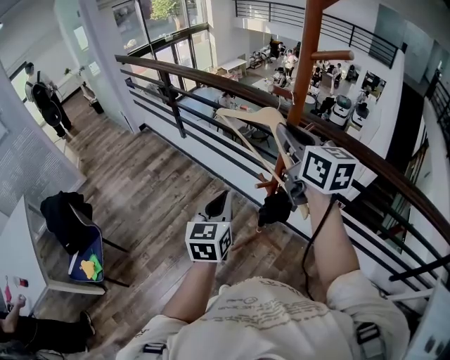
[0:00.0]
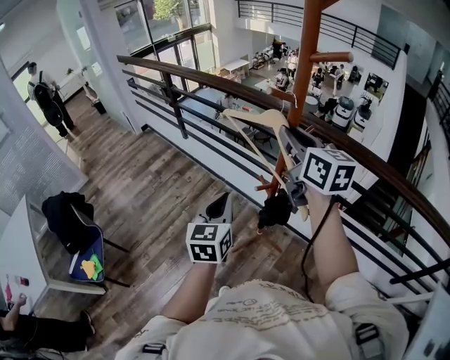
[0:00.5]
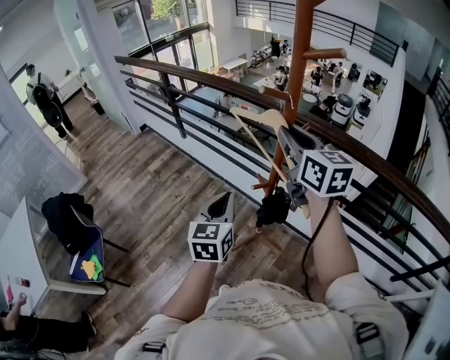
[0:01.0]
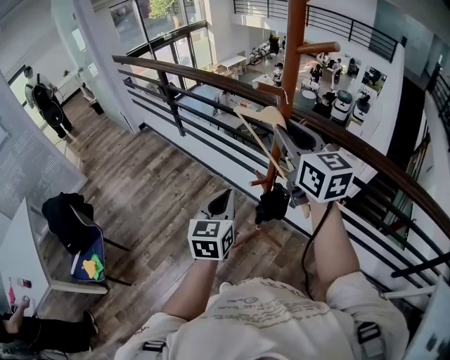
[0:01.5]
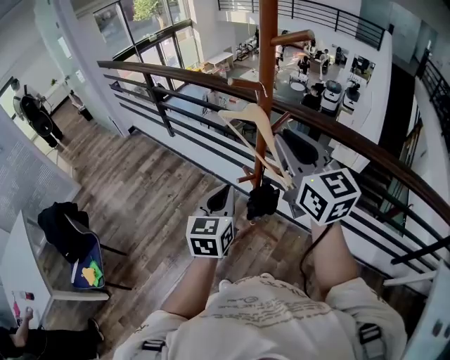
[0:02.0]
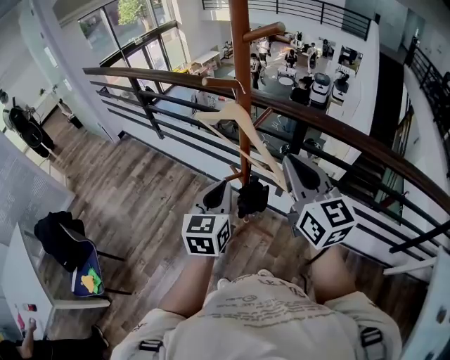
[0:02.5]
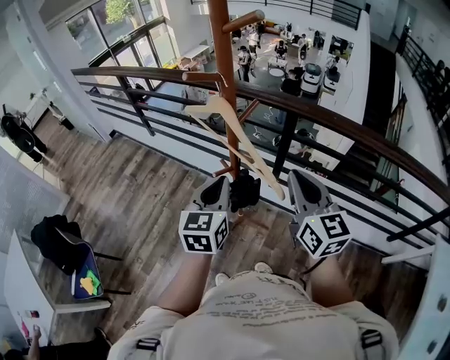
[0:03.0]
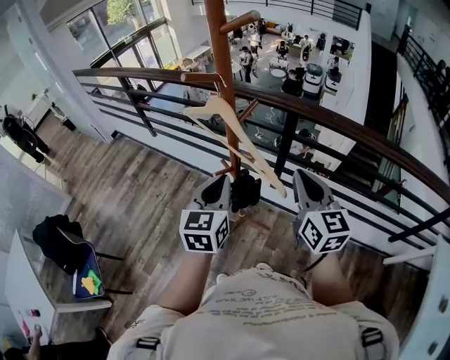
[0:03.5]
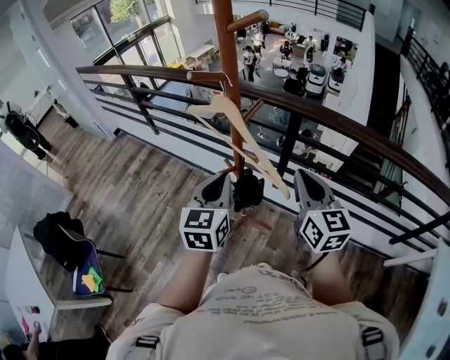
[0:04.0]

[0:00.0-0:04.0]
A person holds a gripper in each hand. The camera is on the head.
0:00.0 to 0:02.0: The left gripper shifts about 10 cm to the right. The right gripper goes some 10 cm backward and to the right.
0:02.0 to 0:04.0: The left gripper travels to the right by some 5 cm. Meanwhile the right gripper is displaced to the right, downward and backward by roughly 20 cm.

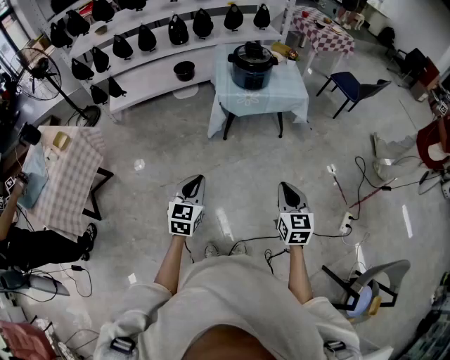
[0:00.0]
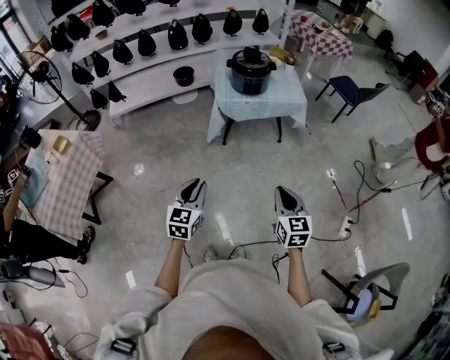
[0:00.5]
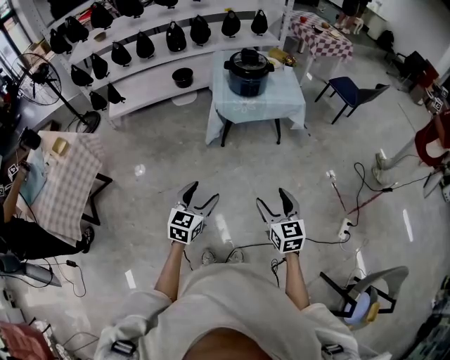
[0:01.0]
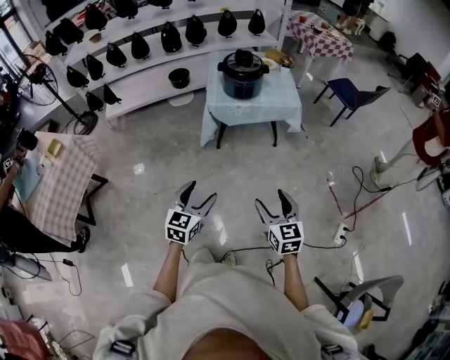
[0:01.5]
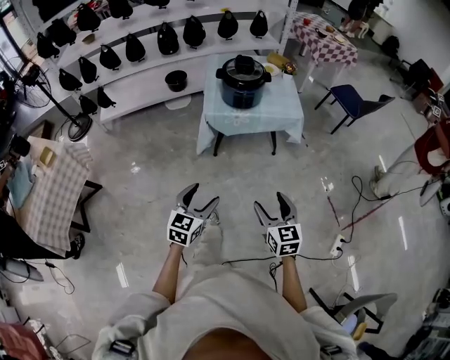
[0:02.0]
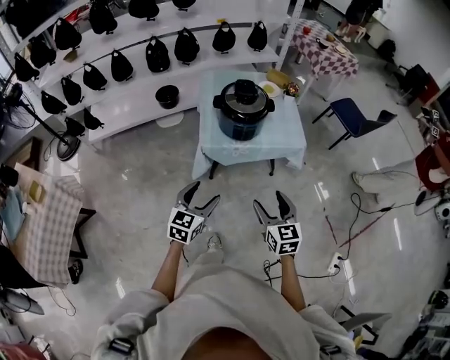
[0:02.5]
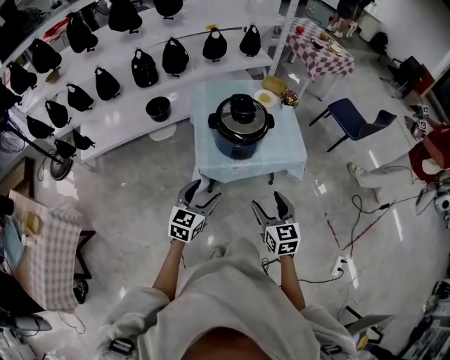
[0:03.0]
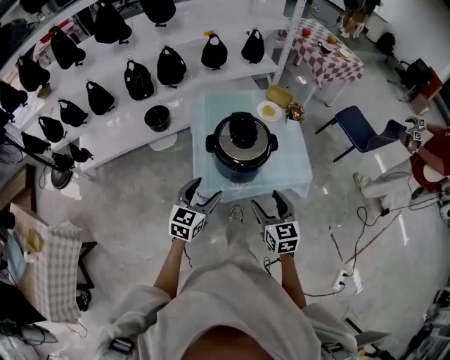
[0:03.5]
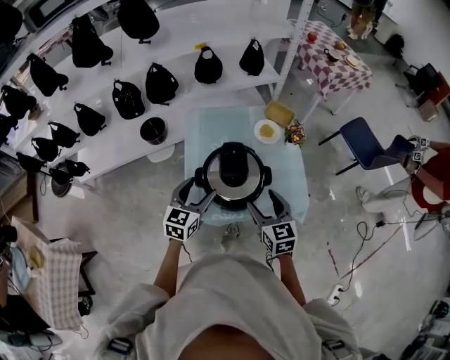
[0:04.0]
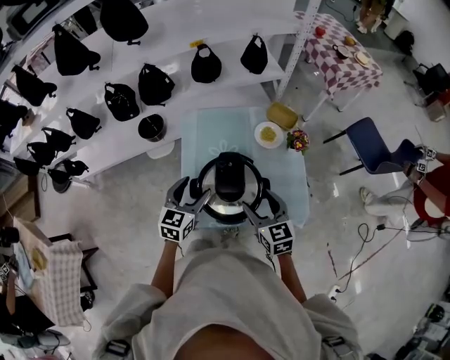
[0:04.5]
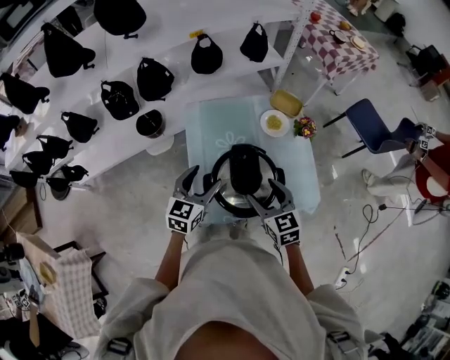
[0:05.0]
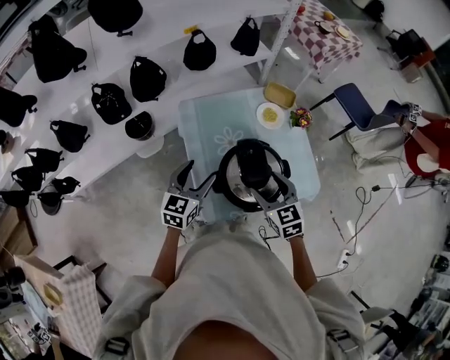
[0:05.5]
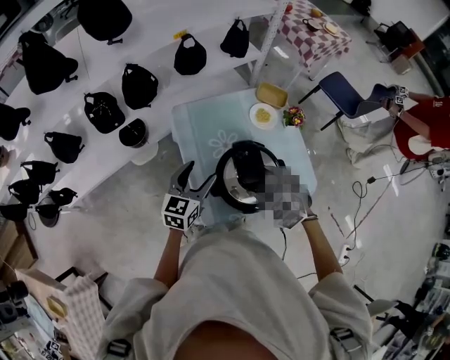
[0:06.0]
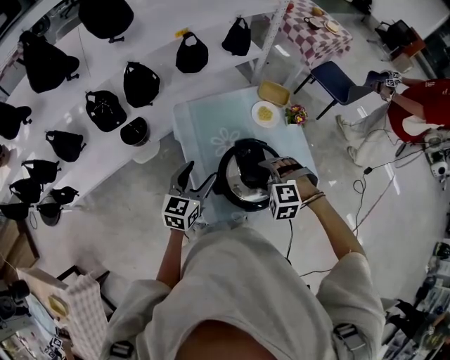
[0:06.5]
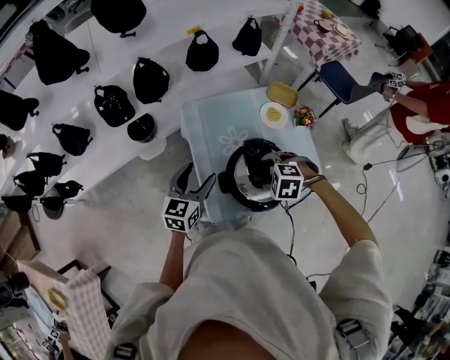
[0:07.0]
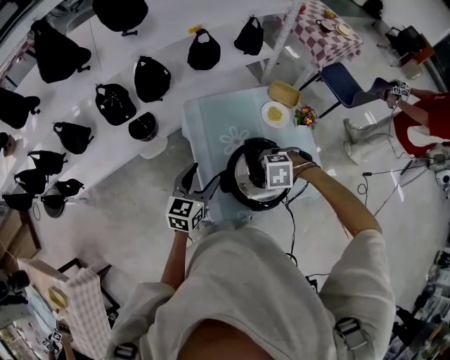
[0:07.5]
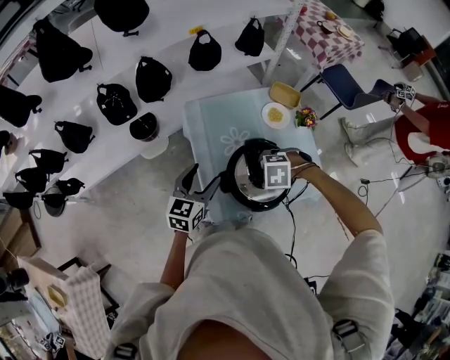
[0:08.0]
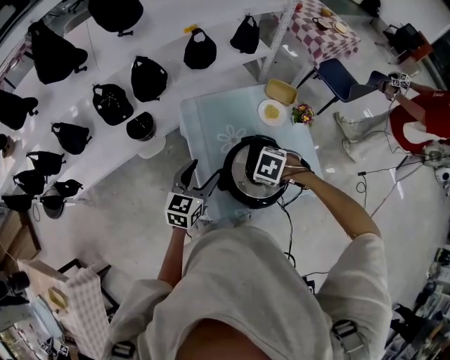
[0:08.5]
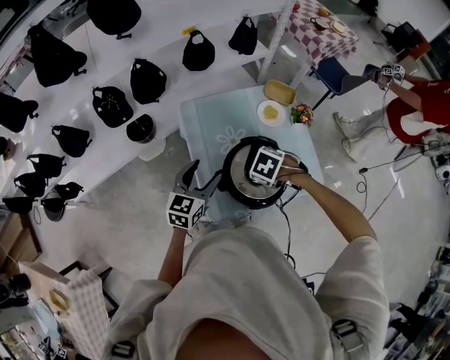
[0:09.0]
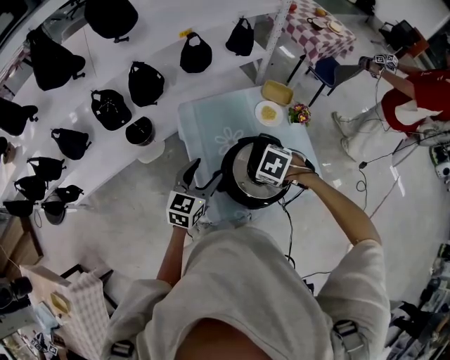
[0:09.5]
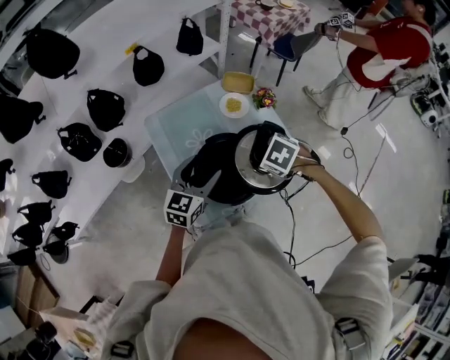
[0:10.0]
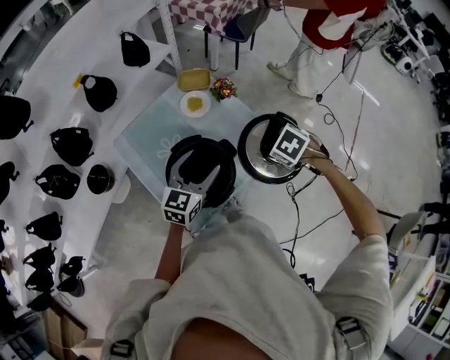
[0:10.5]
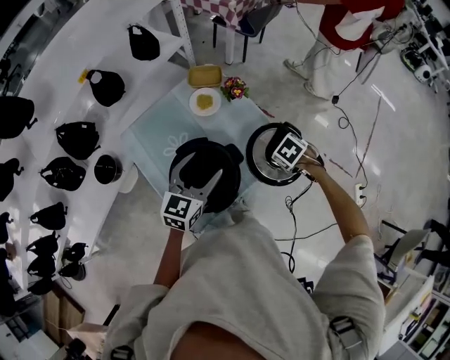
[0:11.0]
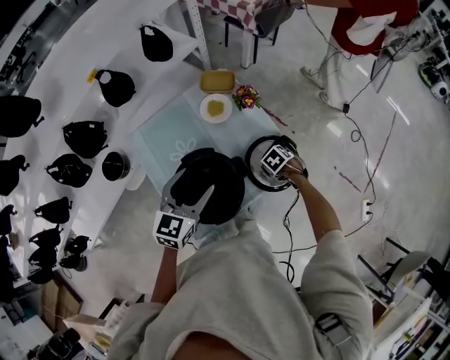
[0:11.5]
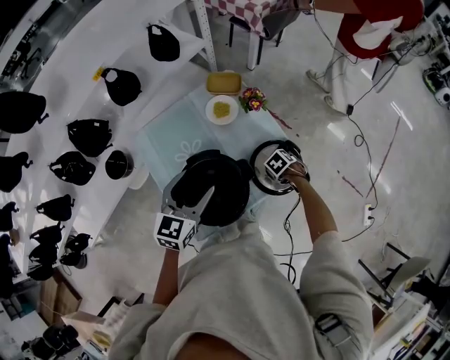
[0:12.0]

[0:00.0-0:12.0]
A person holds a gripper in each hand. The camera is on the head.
0:00.0 to 0:02.0: The left gripper is displaced forward and to the right by approximately 15 cm, and opens its fingers; the right gripper goes roughly 15 cm forward, and opens its fingers.
0:02.0 to 0:04.0: The pair of grippers is taken forward, approximately 70 cm.
0:04.0 to 0:06.0: The right gripper moves to the left and forward, about 10 cm, and swivels approximately 50 degrees. The left gripper moves forward and to the left, some 15 cm.
0:06.0 to 0:08.0: The right gripper changes place by approximately 5 cm, and tilts its fingers roughly 30 degrees downward.
0:08.0 to 0:10.0: The right gripper shifts by some 15 cm, and rolls clockwise, seen from behind, by about 50 degrees; the left gripper moves some 10 cm.
0:10.0 to 0:12.0: The right gripper travels downward by approximately 25 cm, and swivels about 20 degrees. Meanwhile the left gripper ends up approximately 10 cm from where it was.

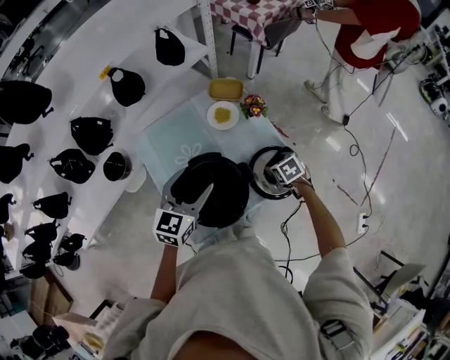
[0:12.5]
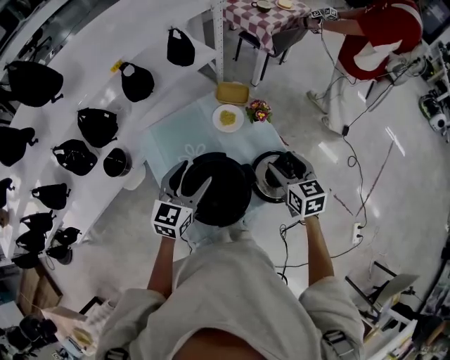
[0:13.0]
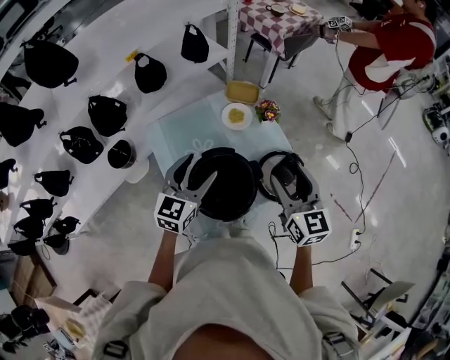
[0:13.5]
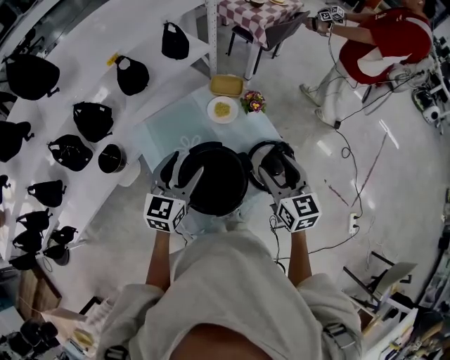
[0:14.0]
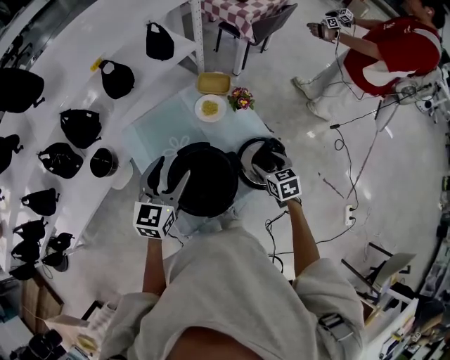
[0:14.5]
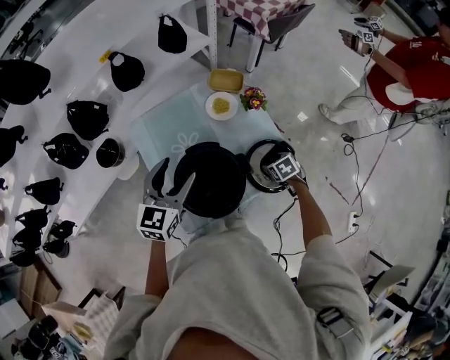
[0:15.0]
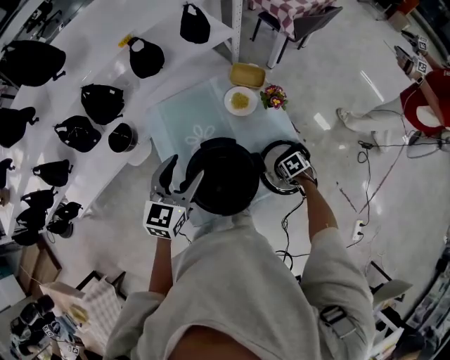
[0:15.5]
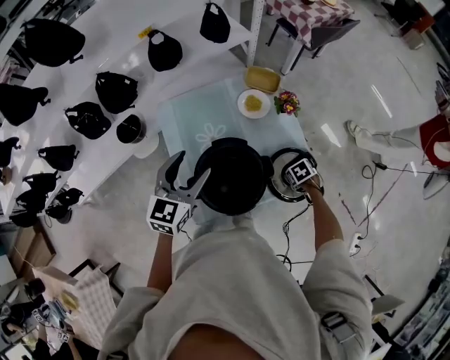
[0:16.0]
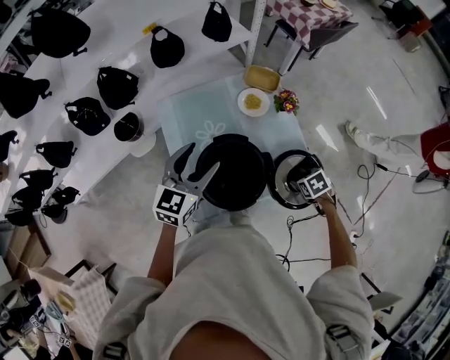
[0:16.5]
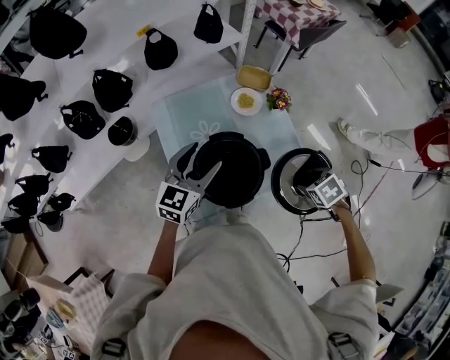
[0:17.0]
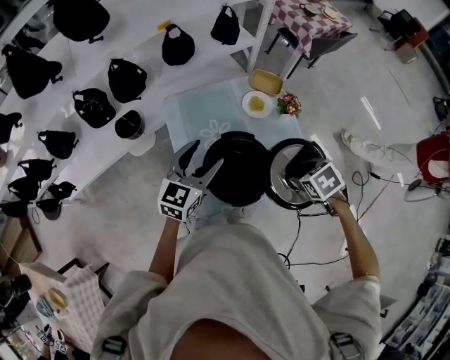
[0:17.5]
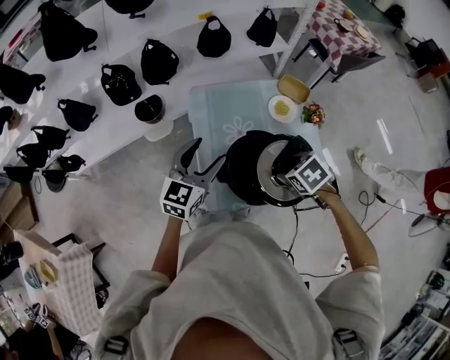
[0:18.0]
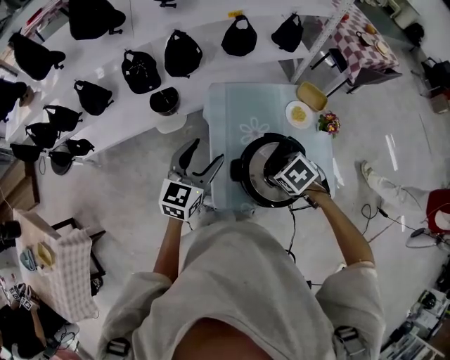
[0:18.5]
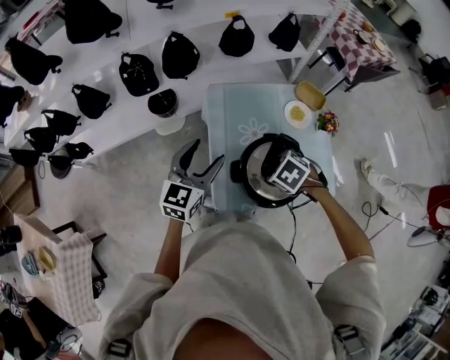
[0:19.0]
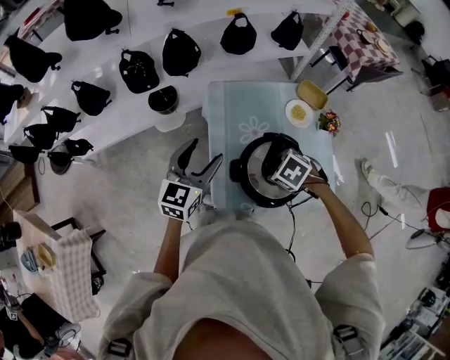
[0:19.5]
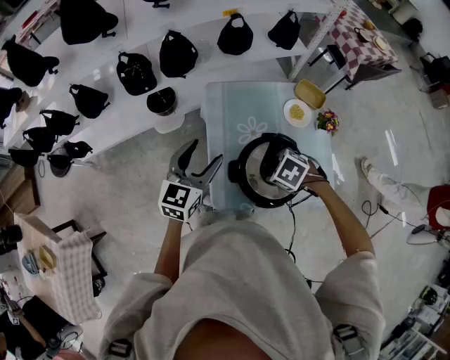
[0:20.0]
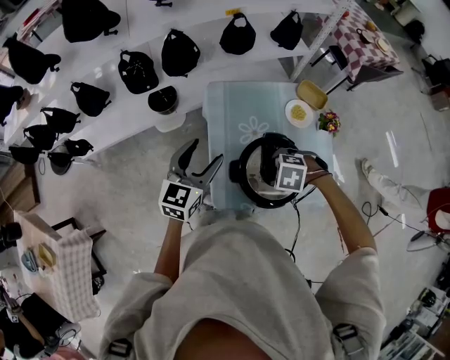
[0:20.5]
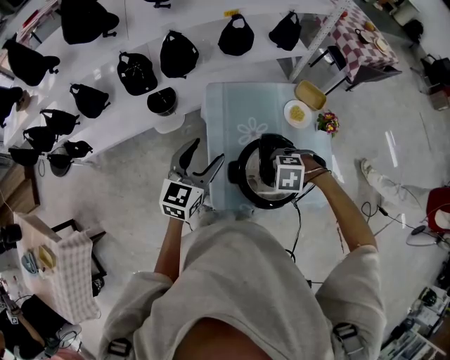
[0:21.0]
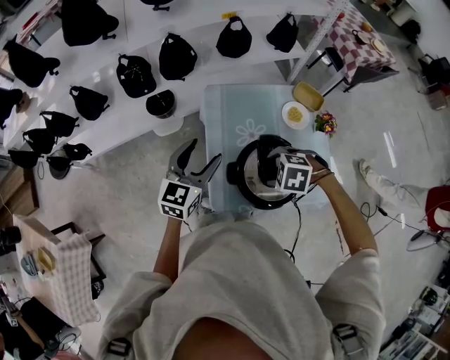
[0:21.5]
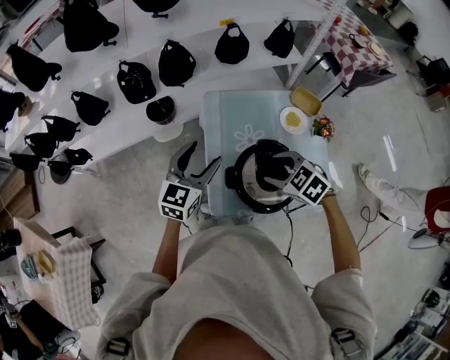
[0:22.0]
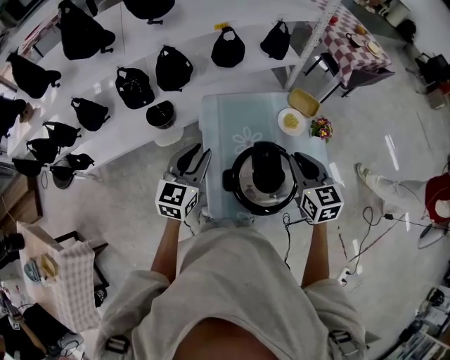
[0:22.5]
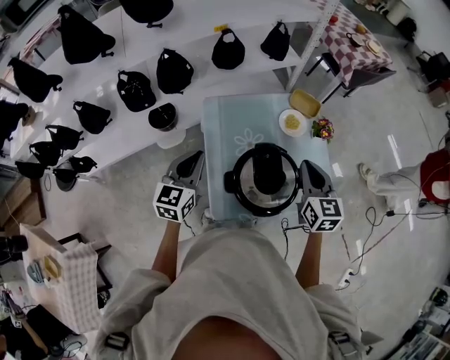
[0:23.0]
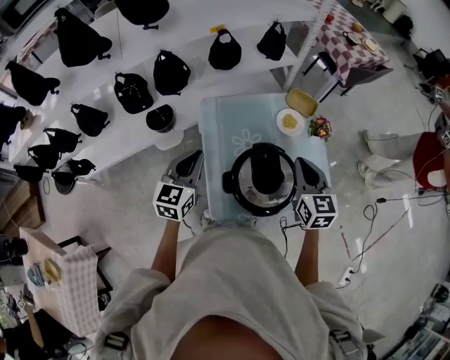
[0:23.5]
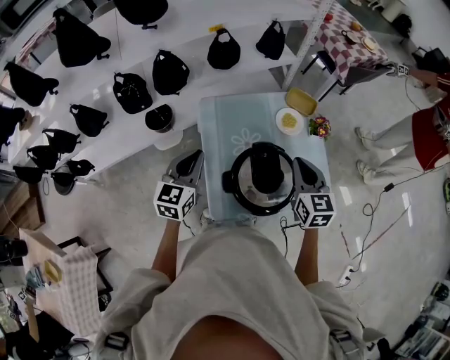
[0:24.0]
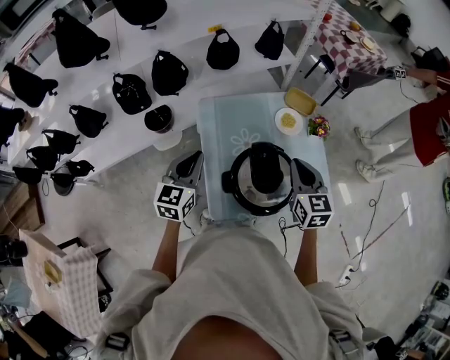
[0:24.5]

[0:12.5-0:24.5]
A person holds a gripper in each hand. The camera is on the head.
0:12.5 to 0:14.5: The right gripper reaches some 30 cm upward, then returns, and swivels some 20 degrees.
0:14.5 to 0:16.5: The right gripper shifts roughly 5 cm downward, and tips its fingers downward by roughly 30 degrees.
0:16.5 to 0:18.5: The right gripper shifts by about 30 cm, and rotates about 30 degrees. Meanwhile the left gripper ends up approximately 15 cm from where it was.
0:18.5 to 0:20.5: The right gripper turns by some 40 degrees.
0:20.5 to 0:22.5: The right gripper shifts about 15 cm upward, points its fingers approximately 60 degrees further upward, and closes. Meanwhile the left gripper closes.
0:22.5 to 0:24.5: There are only small adjustments of the grippers.
